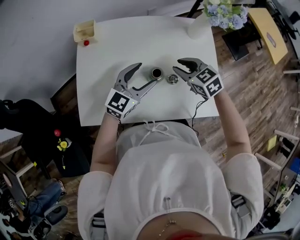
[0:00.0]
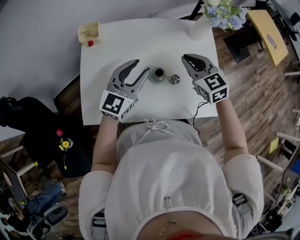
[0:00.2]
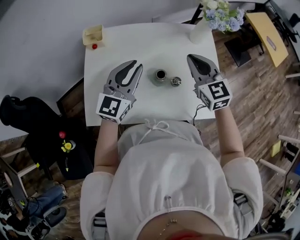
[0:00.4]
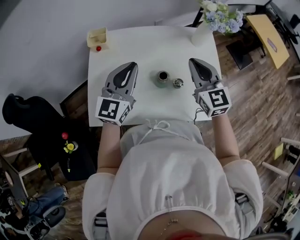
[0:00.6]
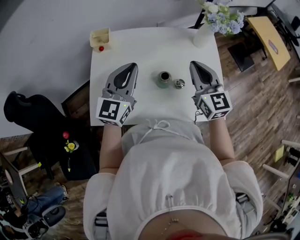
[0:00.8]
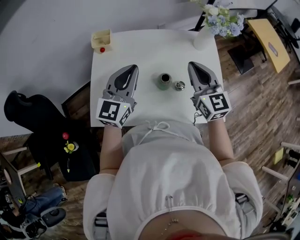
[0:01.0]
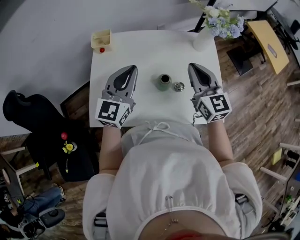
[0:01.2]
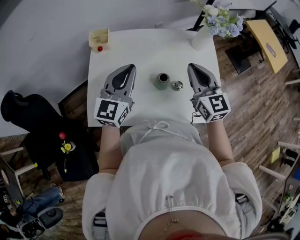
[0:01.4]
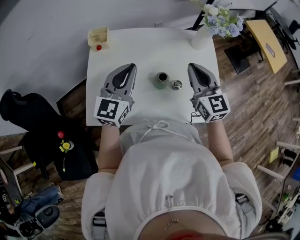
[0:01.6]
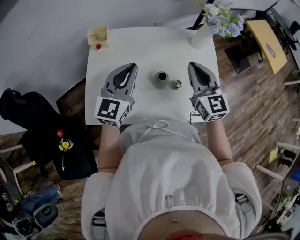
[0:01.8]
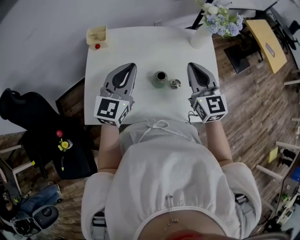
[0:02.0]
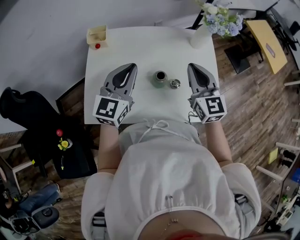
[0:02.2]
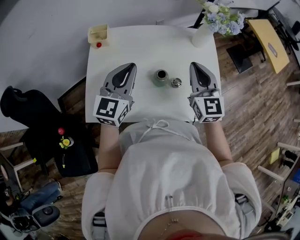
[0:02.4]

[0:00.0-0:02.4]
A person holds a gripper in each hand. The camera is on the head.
0:00.0 to 0:01.2: The right gripper travels upward by approximately 15 cm, and tilts its fingers roughly 40 degrees upward. Meanwhile the left gripper travels upward and to the left by about 15 cm, changes its angle by some 20 degrees, and closes up.
0:01.2 to 0:02.4: The grippers move only a little.

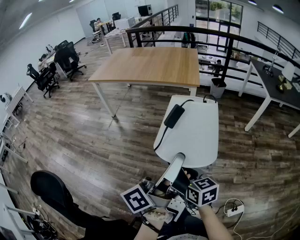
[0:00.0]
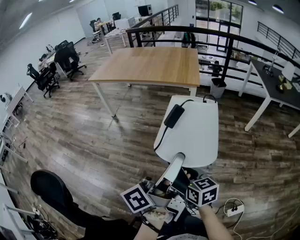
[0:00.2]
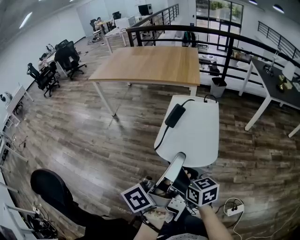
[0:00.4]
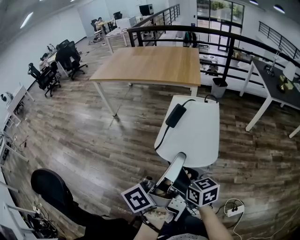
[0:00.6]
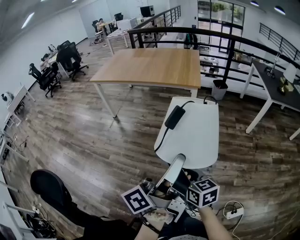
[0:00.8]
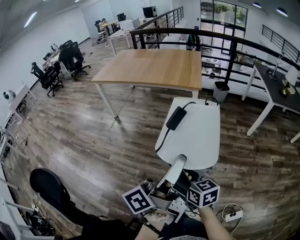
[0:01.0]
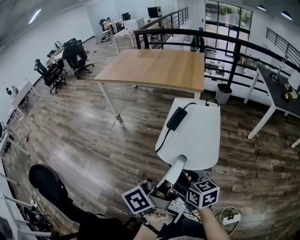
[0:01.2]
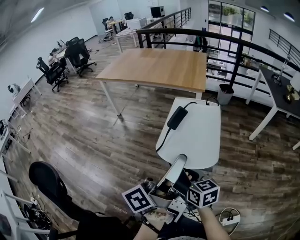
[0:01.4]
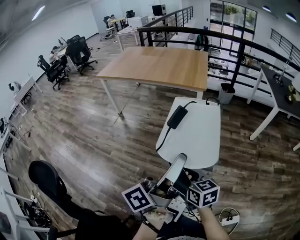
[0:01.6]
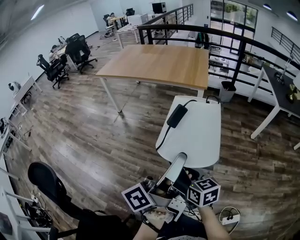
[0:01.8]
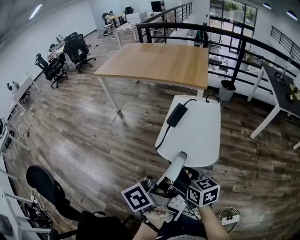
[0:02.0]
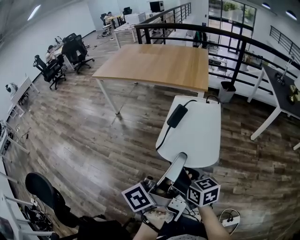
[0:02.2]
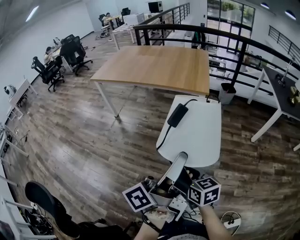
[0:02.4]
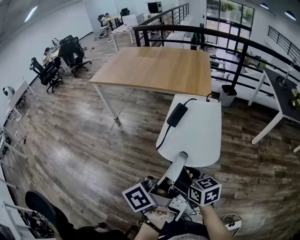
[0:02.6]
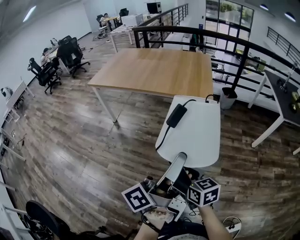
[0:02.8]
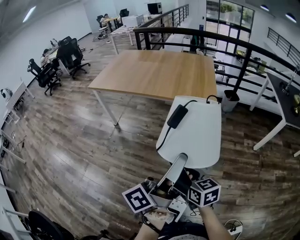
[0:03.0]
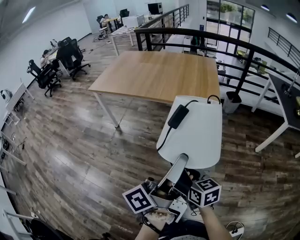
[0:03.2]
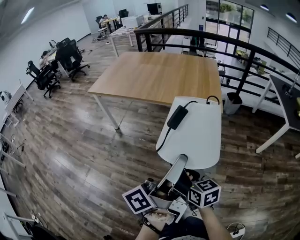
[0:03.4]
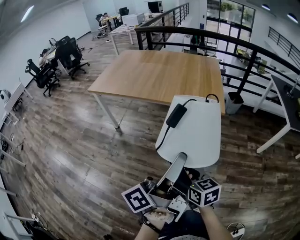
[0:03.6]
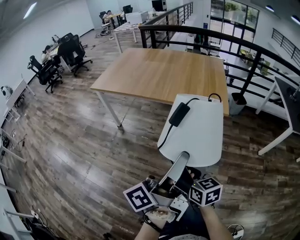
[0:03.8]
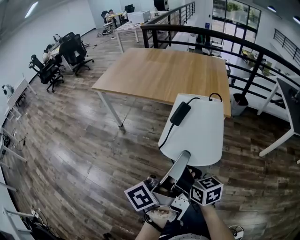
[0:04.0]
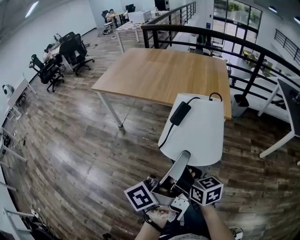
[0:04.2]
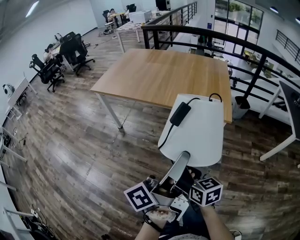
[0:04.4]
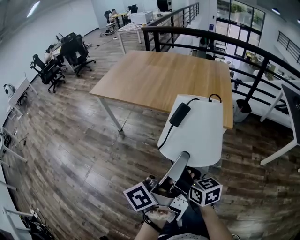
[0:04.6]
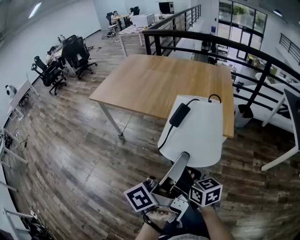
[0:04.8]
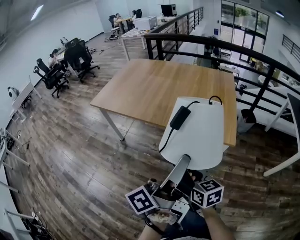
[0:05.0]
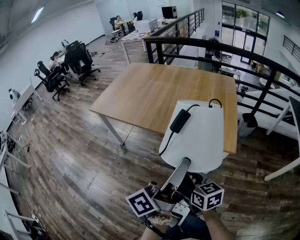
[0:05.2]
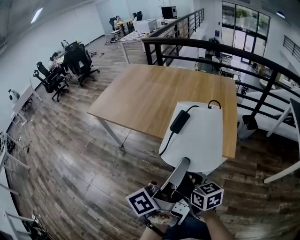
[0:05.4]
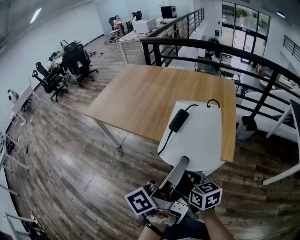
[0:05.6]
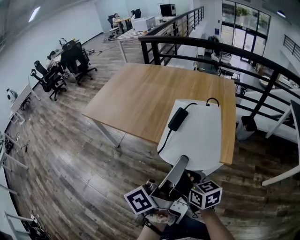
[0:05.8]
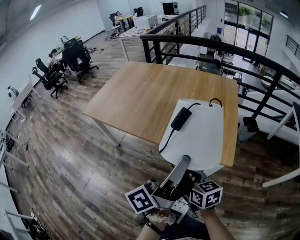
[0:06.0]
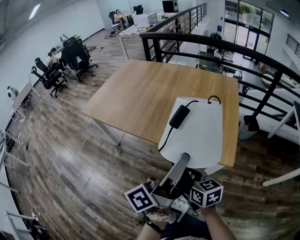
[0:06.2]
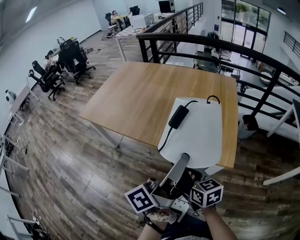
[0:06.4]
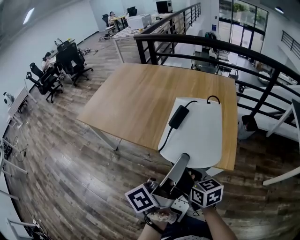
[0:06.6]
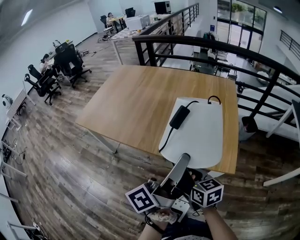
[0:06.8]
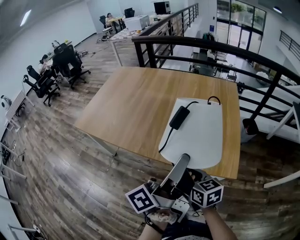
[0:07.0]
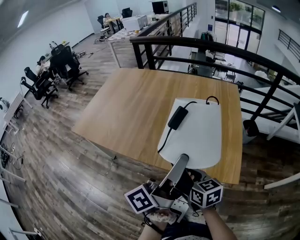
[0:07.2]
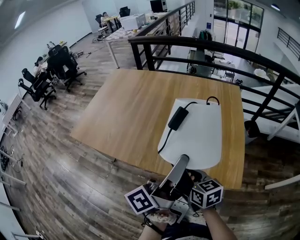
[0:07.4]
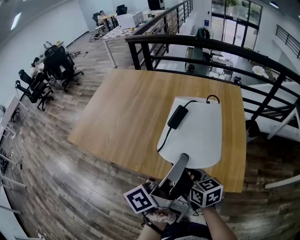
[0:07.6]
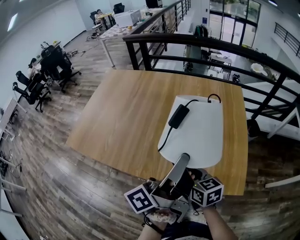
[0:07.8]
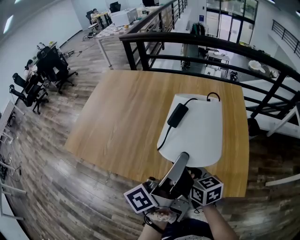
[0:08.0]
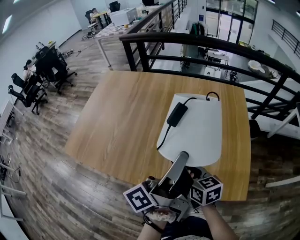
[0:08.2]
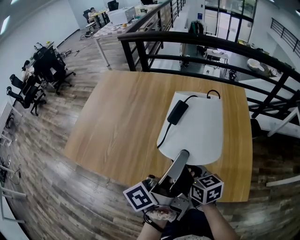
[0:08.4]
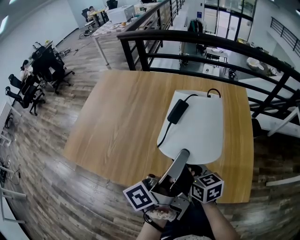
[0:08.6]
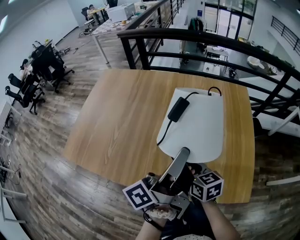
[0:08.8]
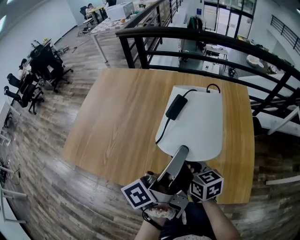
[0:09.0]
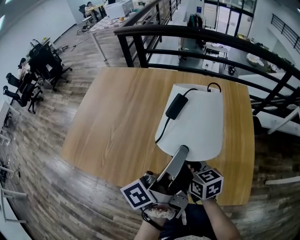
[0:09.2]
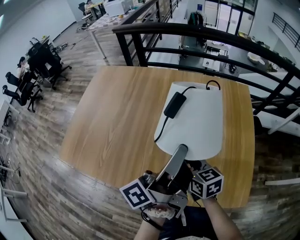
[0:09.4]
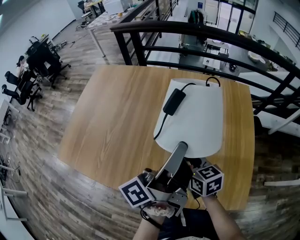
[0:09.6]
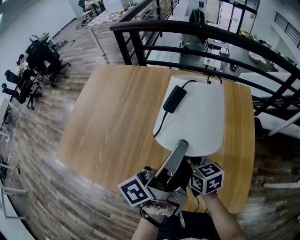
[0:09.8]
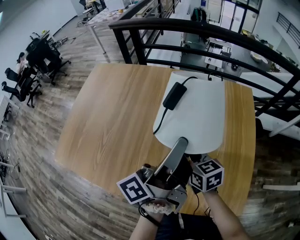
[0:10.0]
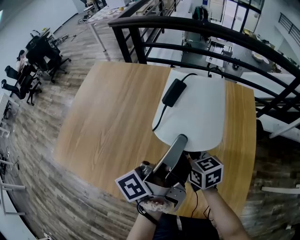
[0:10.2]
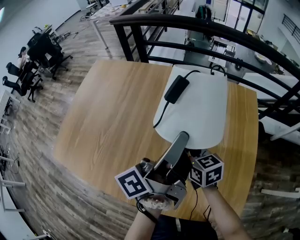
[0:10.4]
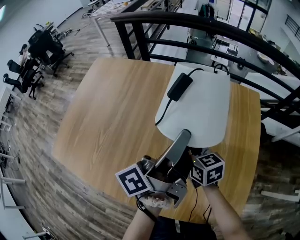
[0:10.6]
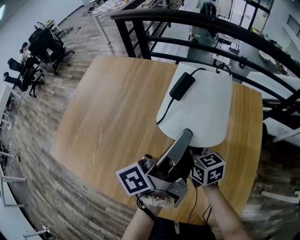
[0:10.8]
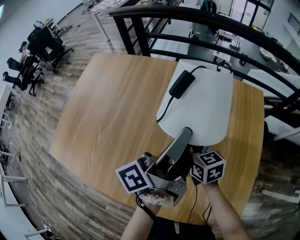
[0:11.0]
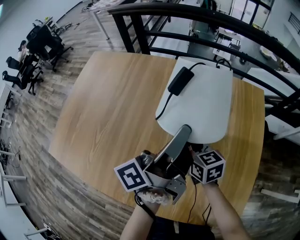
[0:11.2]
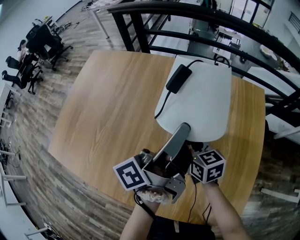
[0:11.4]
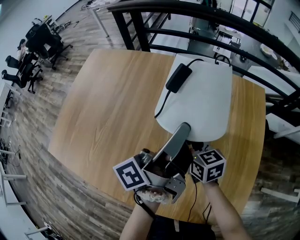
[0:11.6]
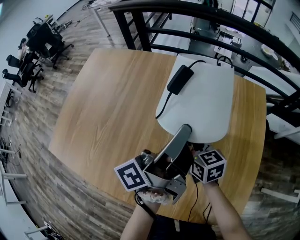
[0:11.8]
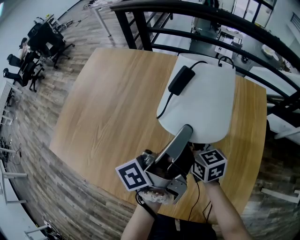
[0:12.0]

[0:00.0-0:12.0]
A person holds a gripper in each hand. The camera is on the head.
0:01.6 to 0:03.0: The right gripper shifts by approximately 25 cm.
0:03.0 to 0:04.4: The right gripper ends up about 15 cm from where it was.
0:04.4 to 0:06.0: The right gripper moves about 25 cm.
0:06.0 to 0:07.6: The right gripper changes place by about 20 cm.
0:07.6 to 0:09.0: The right gripper shifts by roughly 15 cm.
0:09.0 to 0:10.4: The right gripper shifts by approximately 15 cm.
0:10.4 to 0:12.0: The right gripper ends up about 5 cm from where it was.

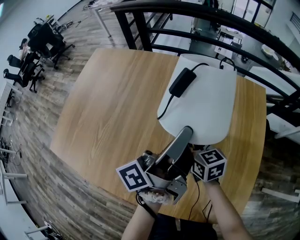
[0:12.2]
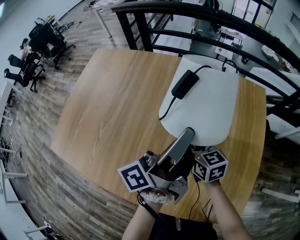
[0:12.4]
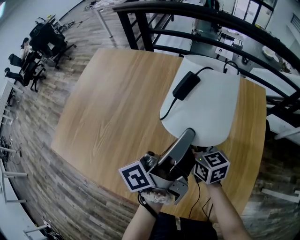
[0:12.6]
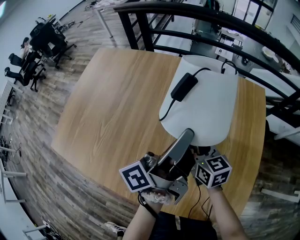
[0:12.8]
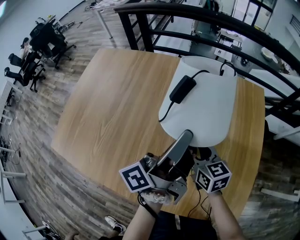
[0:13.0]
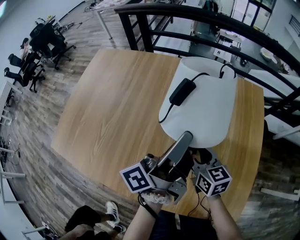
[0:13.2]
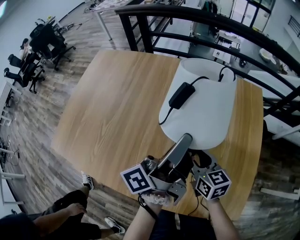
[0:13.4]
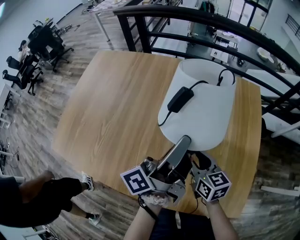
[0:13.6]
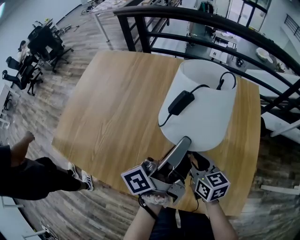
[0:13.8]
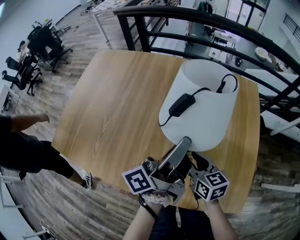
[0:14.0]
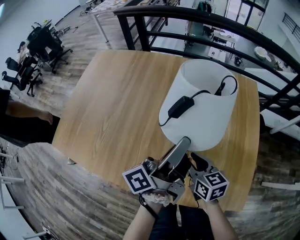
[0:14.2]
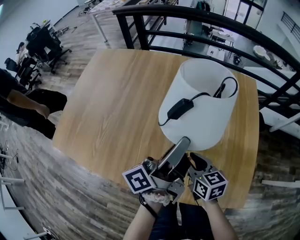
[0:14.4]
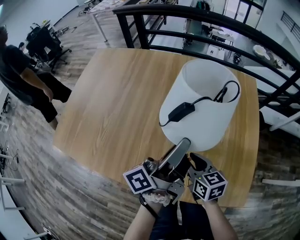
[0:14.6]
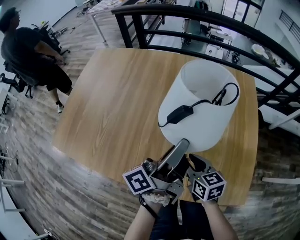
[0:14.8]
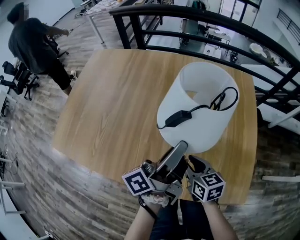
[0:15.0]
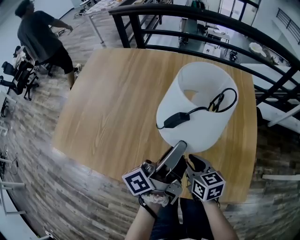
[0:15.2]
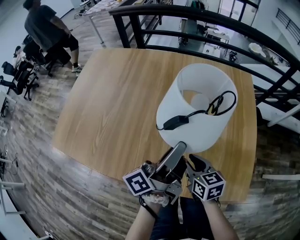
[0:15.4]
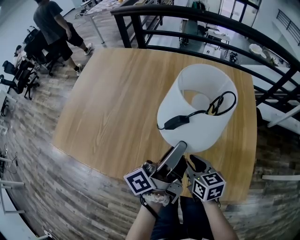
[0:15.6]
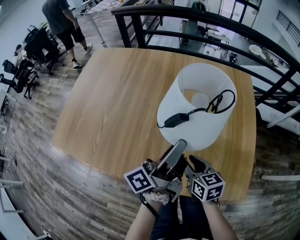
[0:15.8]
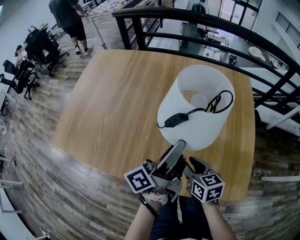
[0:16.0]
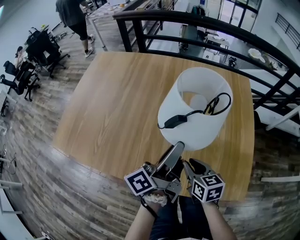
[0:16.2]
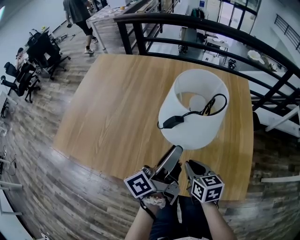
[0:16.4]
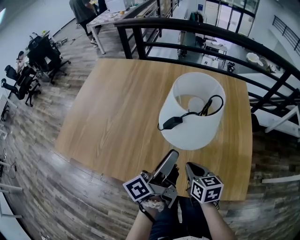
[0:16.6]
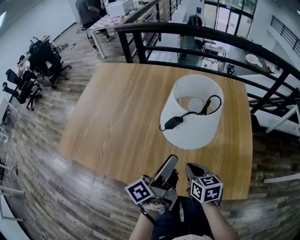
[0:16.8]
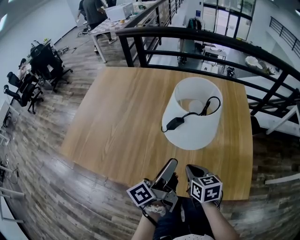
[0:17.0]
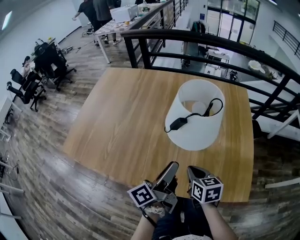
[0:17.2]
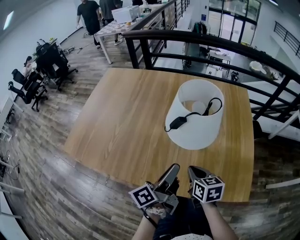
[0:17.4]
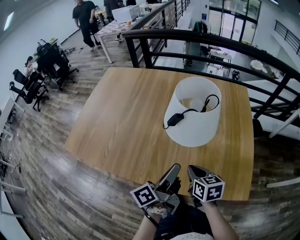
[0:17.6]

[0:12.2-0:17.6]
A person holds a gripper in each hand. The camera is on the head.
0:12.2 to 0:13.6: The right gripper changes place by roughly 10 cm.
0:13.6 to 0:15.0: The right gripper changes place by some 10 cm.
0:16.2 to 0:17.6: The right gripper closes up.

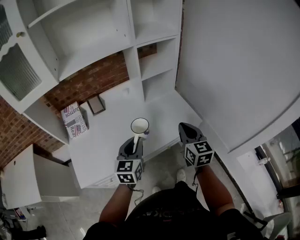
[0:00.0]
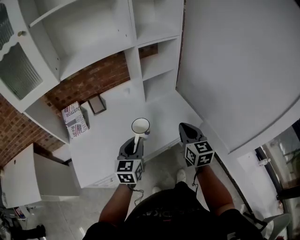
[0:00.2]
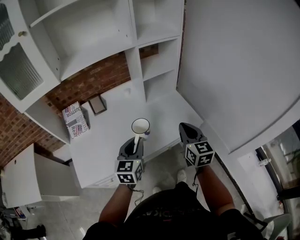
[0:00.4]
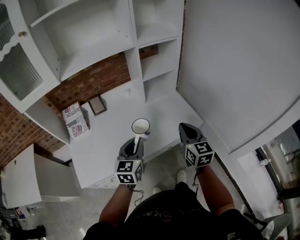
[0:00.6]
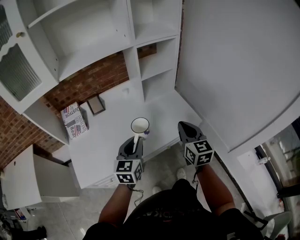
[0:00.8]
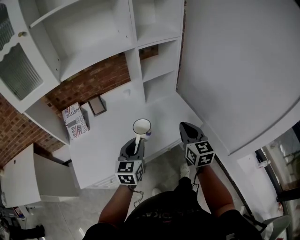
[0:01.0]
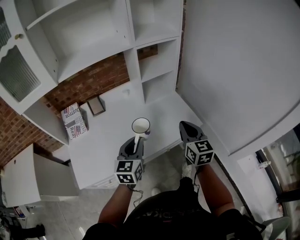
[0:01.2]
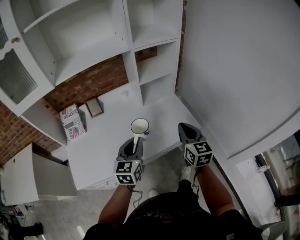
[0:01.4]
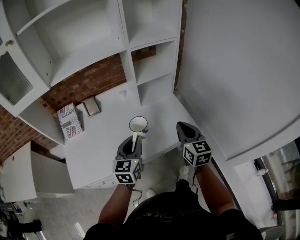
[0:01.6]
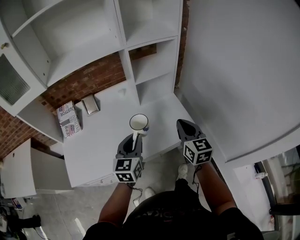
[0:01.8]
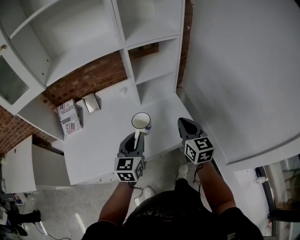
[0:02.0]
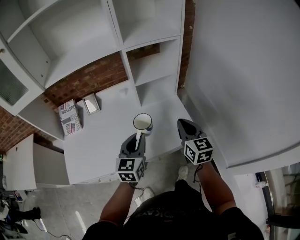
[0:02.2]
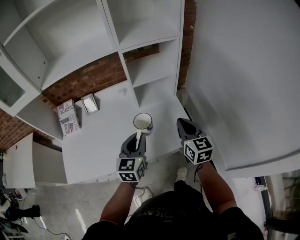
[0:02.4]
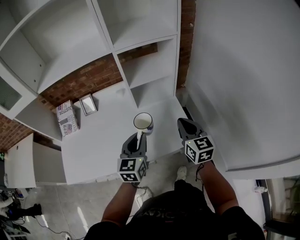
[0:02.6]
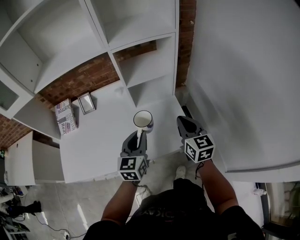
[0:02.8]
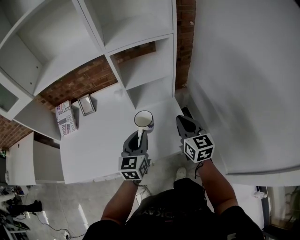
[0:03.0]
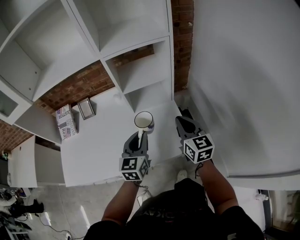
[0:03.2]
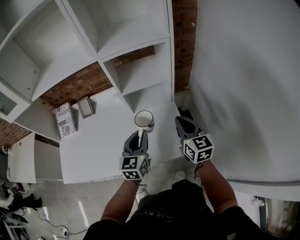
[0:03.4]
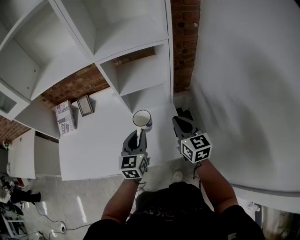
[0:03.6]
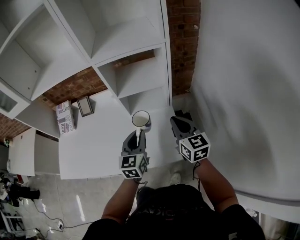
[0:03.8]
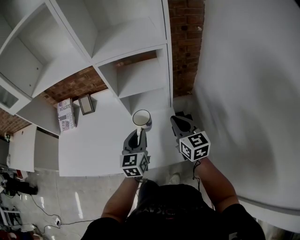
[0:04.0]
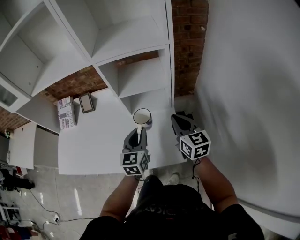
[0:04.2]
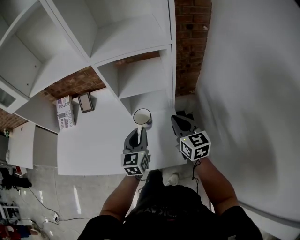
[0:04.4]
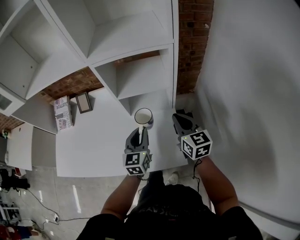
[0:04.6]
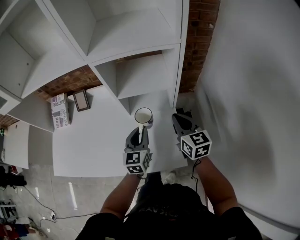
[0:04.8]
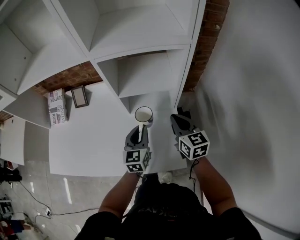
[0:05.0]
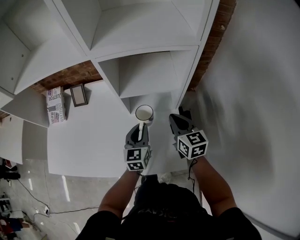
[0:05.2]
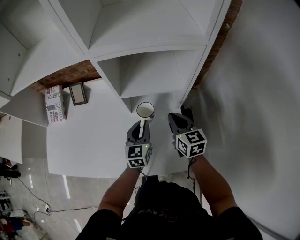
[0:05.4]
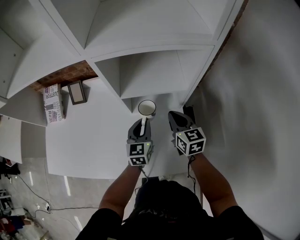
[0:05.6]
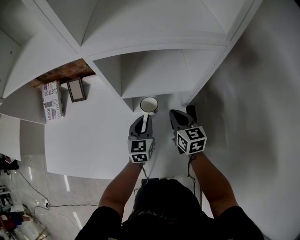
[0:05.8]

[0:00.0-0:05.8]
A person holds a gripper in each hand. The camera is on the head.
0:00.0 to 0:01.4: The grippers stay close to where they were, moving slightly.
0:01.4 to 0:02.8: The right gripper heads forward and to the right, covering about 20 cm. Meanwhile the left gripper moves to the right and forward, some 20 cm.
0:02.8 to 0:04.4: Both grippers move forward and to the right, roughly 15 cm.
0:04.4 to 0:05.8: The right gripper travels downward and forward by roughly 20 cm. Meanwhile the left gripper shifts roughly 15 cm forward and downward.
